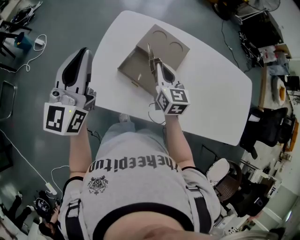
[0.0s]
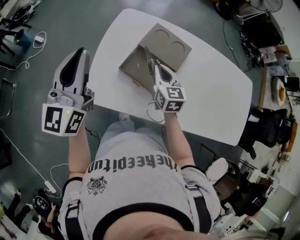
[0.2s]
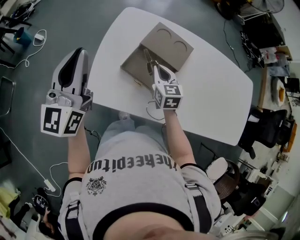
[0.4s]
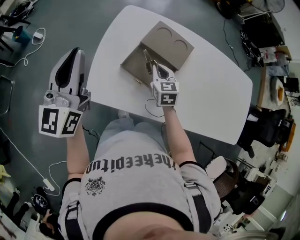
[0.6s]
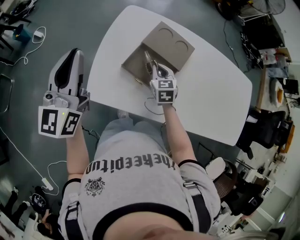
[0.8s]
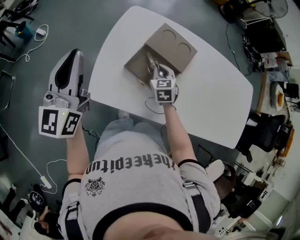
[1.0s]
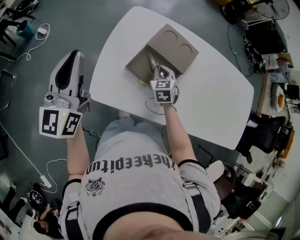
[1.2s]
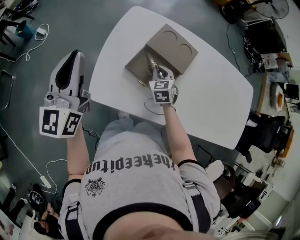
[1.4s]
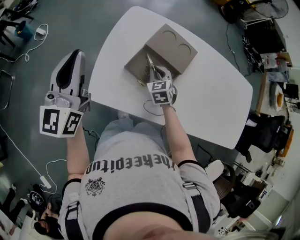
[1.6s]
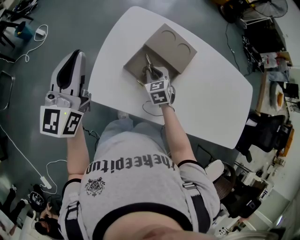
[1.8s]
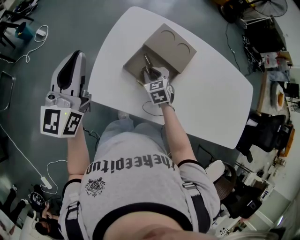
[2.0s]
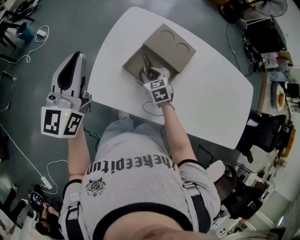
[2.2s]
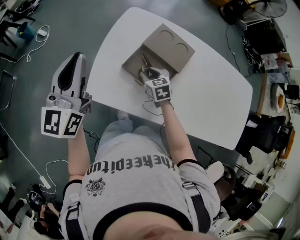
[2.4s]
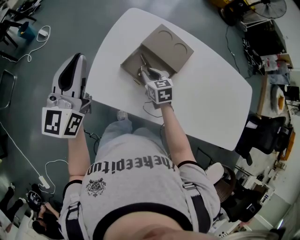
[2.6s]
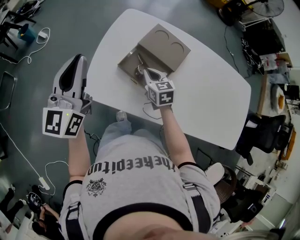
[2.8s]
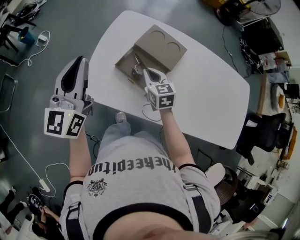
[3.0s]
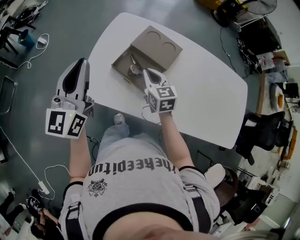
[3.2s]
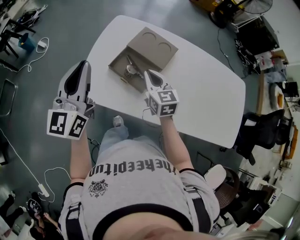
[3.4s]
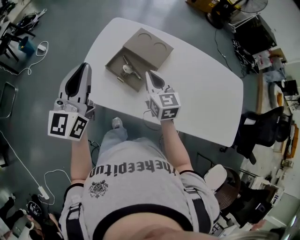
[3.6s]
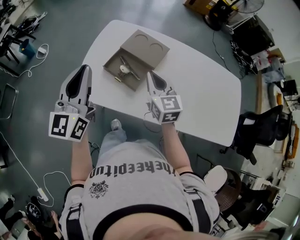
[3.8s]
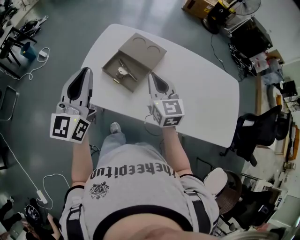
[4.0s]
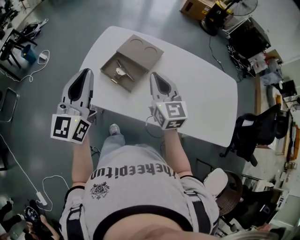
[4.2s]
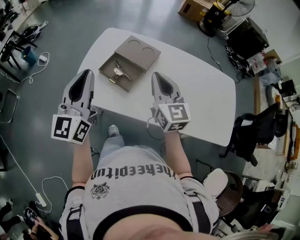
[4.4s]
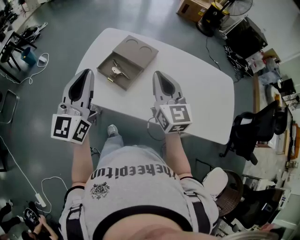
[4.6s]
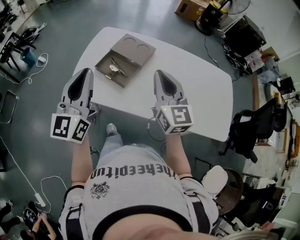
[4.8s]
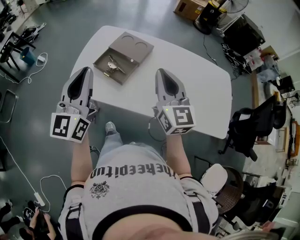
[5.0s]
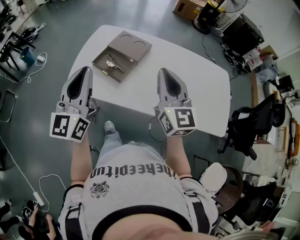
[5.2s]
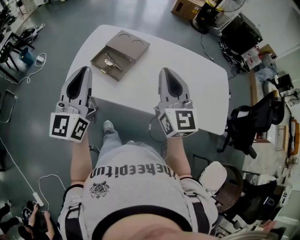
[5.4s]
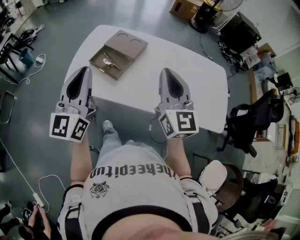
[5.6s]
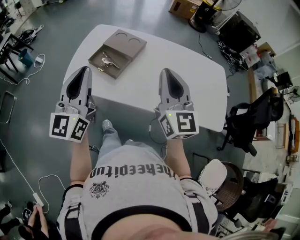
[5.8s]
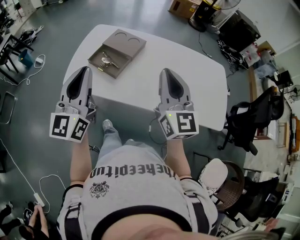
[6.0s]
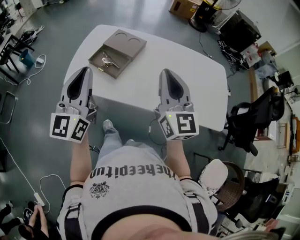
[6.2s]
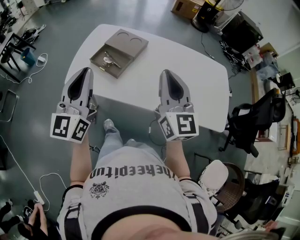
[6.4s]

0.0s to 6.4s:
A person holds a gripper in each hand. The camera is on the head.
0.0s to 1.6s: The right gripper goes some 15 cm downward, and turns by approximately 40 degrees. The left gripper shifts some 5 cm to the left.
1.6s to 3.2s: The left gripper is displaced to the right and backward by roughly 10 cm, while the right gripper shifts approximately 10 cm upward and backward, turns by roughly 30 degrees, and opens, then closes once more.
3.2s to 4.8s: The right gripper shifts approximately 30 cm upward, backward and to the right, and turns by about 30 degrees, while the left gripper goes about 20 cm backward and to the right.
4.8s to 6.4s: Both grippers travel together backward and to the right, approximately 10 cm.

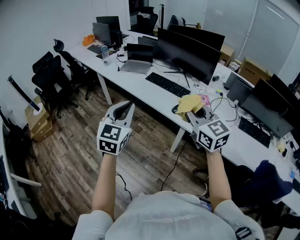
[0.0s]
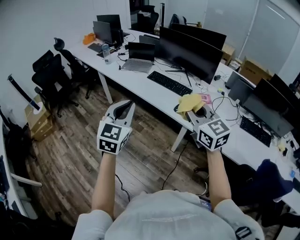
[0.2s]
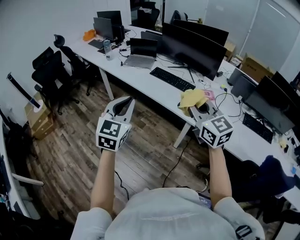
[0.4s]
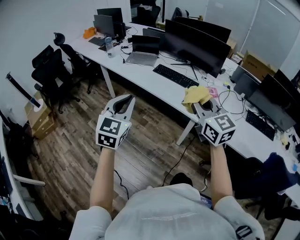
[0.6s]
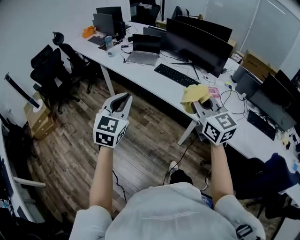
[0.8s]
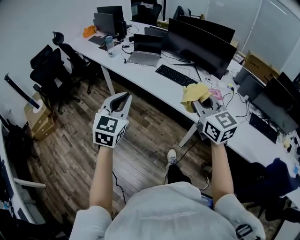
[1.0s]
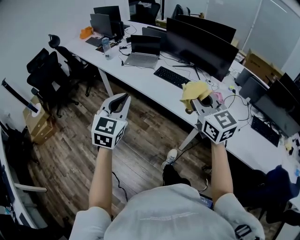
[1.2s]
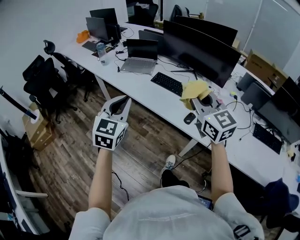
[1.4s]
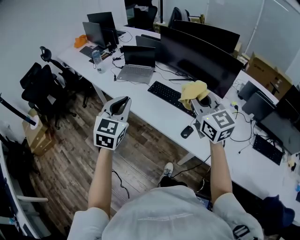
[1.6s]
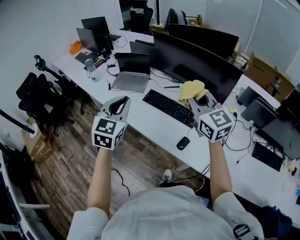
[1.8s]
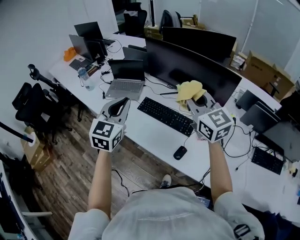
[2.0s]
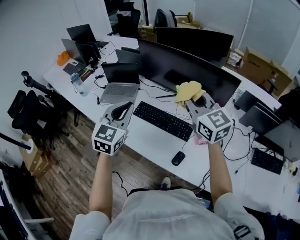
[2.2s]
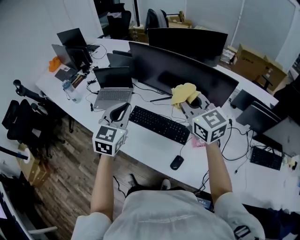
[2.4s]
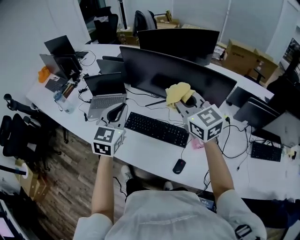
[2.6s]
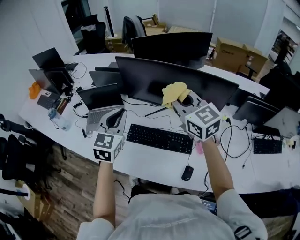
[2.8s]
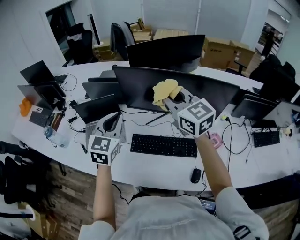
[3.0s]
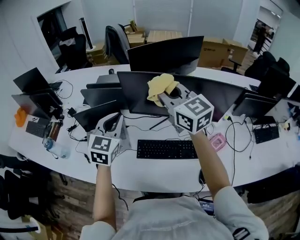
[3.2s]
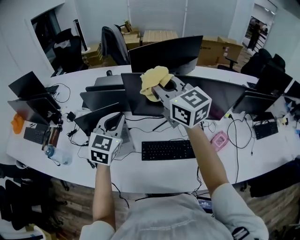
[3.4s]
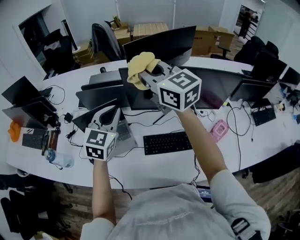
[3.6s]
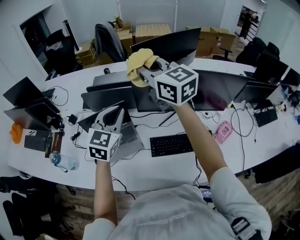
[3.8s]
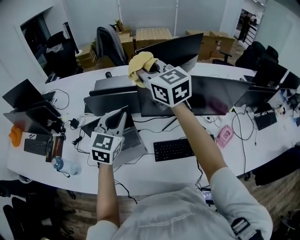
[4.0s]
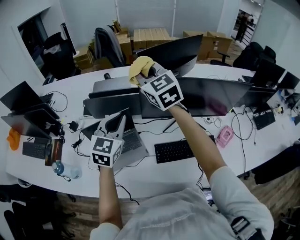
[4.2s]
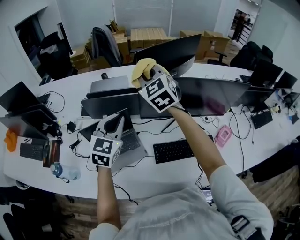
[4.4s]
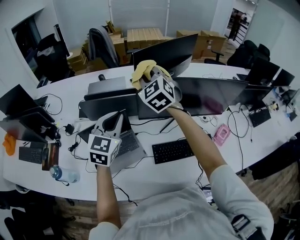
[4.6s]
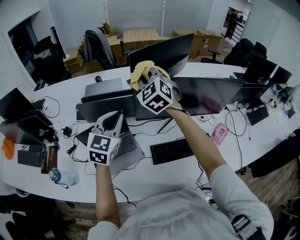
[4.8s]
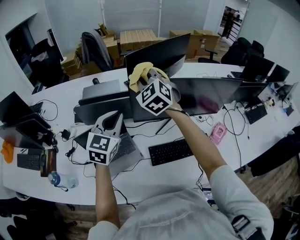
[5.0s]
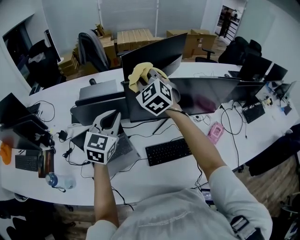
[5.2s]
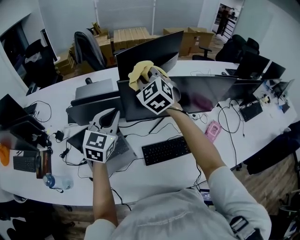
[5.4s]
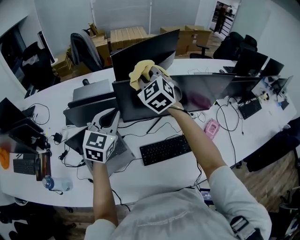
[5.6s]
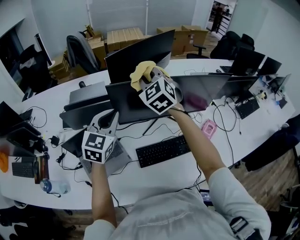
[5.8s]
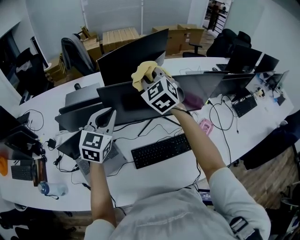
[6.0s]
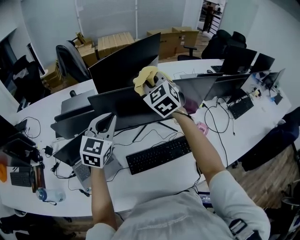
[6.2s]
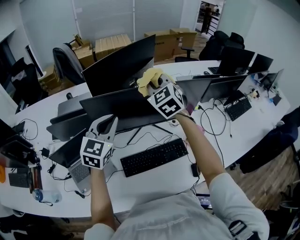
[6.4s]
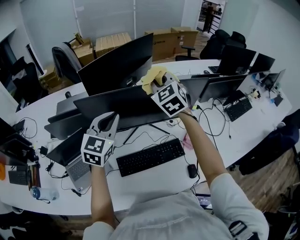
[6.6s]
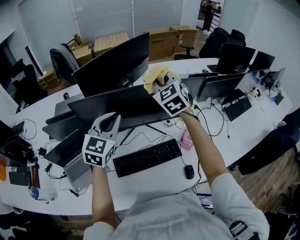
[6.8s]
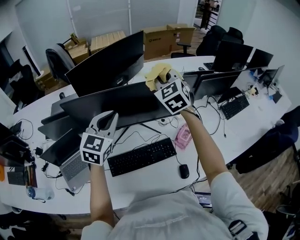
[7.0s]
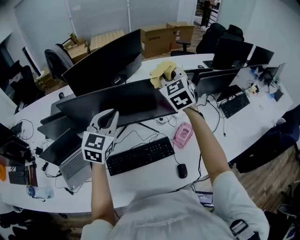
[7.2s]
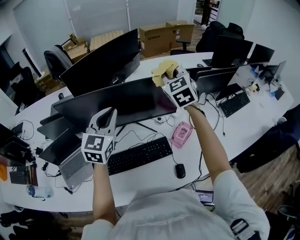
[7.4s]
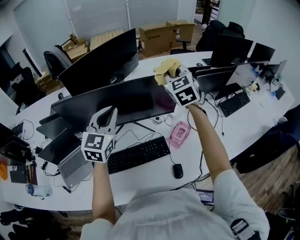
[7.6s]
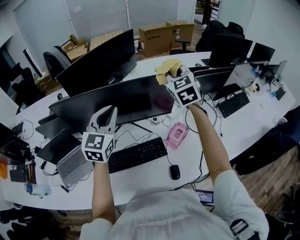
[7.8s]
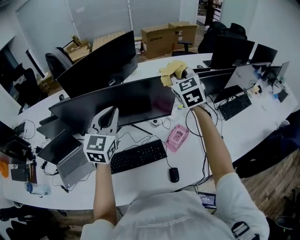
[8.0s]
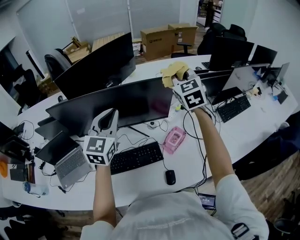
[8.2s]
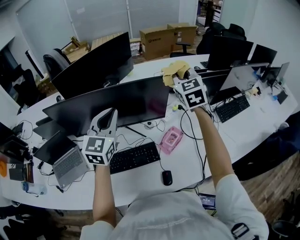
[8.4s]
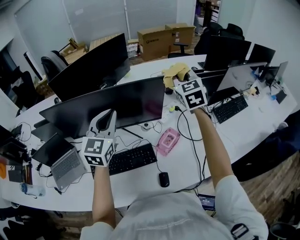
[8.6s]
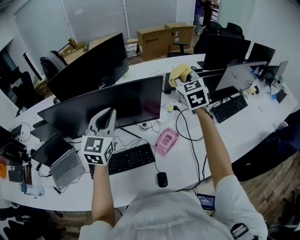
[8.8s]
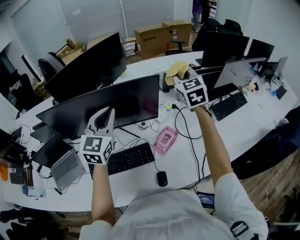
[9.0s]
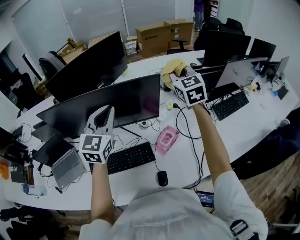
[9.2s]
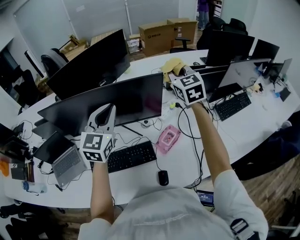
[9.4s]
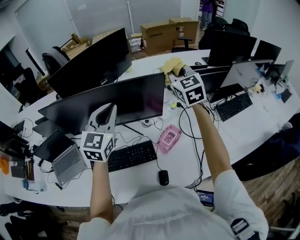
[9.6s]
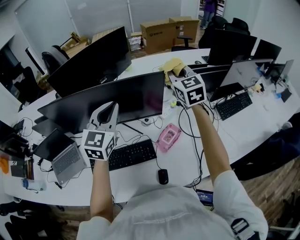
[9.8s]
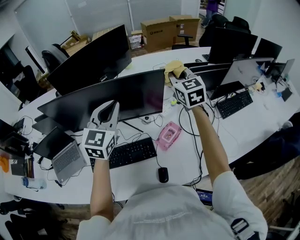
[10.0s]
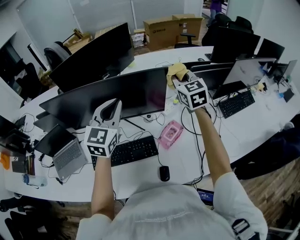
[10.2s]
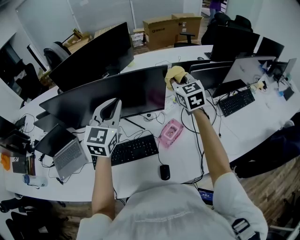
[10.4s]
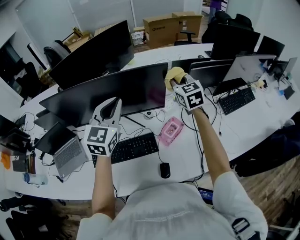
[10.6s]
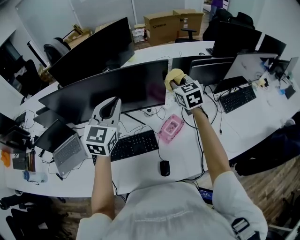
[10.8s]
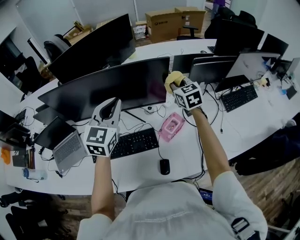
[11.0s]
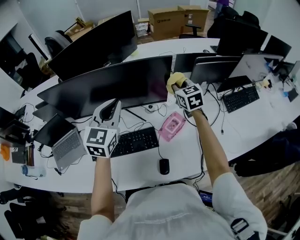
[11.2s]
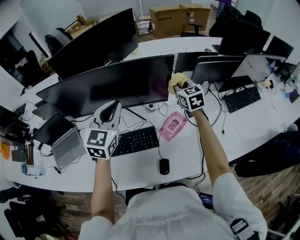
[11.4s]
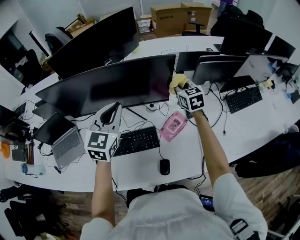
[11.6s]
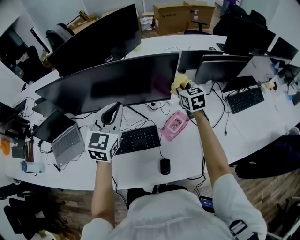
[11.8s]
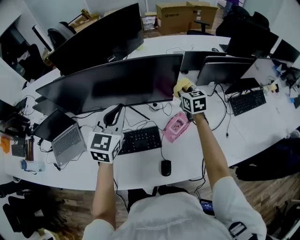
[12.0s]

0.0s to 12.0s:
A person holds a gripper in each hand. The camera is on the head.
0.0s to 1.6s: Both grippers move forward, about 30 cm.
1.6s to 3.0s: Both grippers move forward, approximately 40 cm. The left gripper turns by about 20 degrees.
3.0s to 4.4s: The right gripper moves forward and to the left, some 30 cm, and turns by roughly 40 degrees. Meanwhile the left gripper heads to the left and forward, covering approximately 20 cm.
4.4s to 6.0s: The right gripper travels to the right by approximately 20 cm, while the left gripper heads to the right and forward, covering approximately 15 cm.
6.0s to 7.6s: Both grippers move to the right, about 30 cm.
7.6s to 9.0s: The two grippers go about 15 cm to the right.
9.0s to 10.4s: The right gripper is displaced downward by roughly 5 cm.
10.4s to 12.0s: The right gripper shifts roughly 15 cm downward, while the left gripper is displaced downward by some 10 cm.

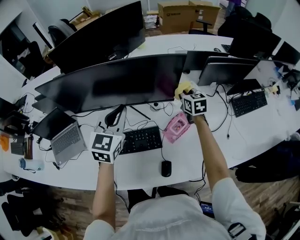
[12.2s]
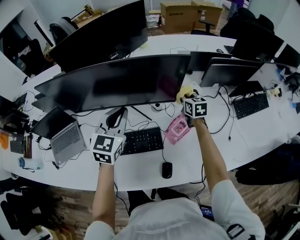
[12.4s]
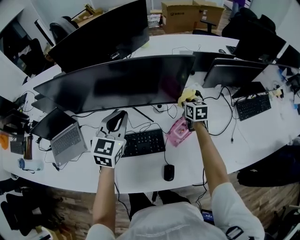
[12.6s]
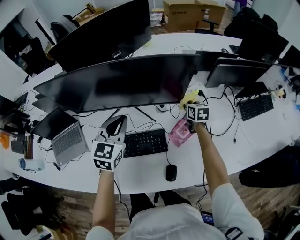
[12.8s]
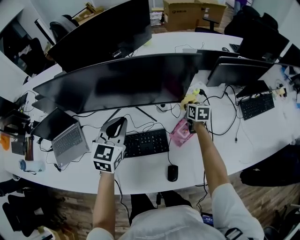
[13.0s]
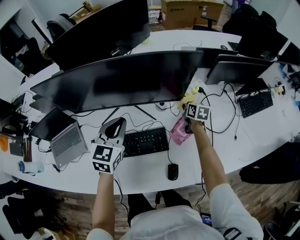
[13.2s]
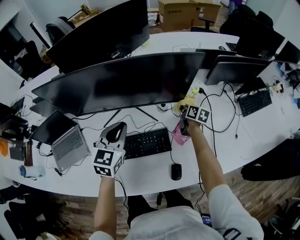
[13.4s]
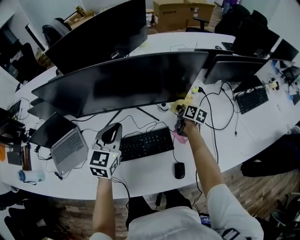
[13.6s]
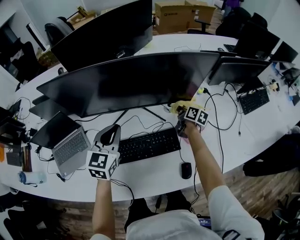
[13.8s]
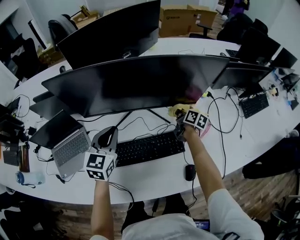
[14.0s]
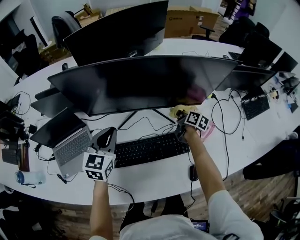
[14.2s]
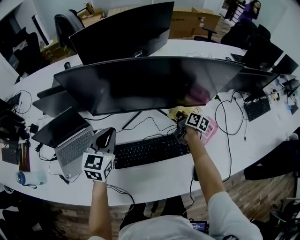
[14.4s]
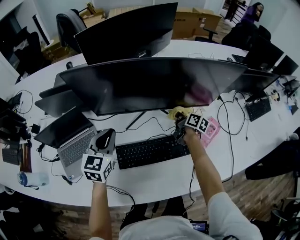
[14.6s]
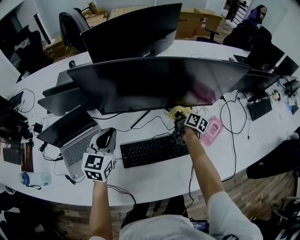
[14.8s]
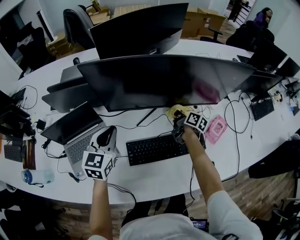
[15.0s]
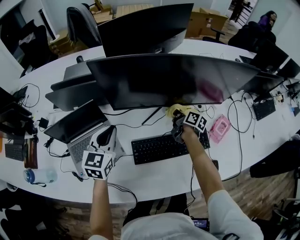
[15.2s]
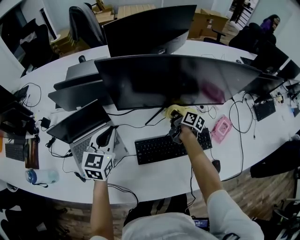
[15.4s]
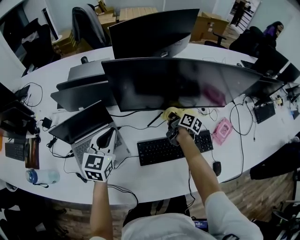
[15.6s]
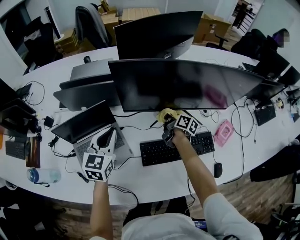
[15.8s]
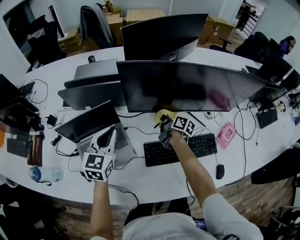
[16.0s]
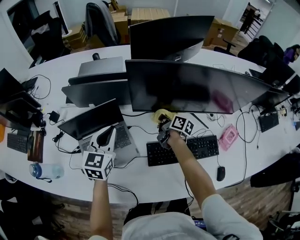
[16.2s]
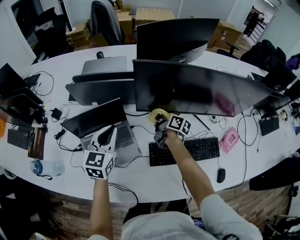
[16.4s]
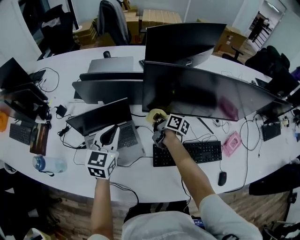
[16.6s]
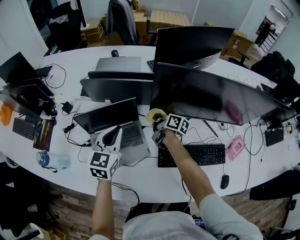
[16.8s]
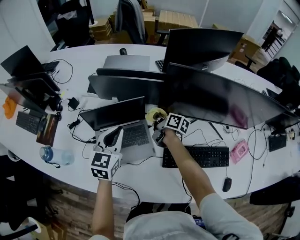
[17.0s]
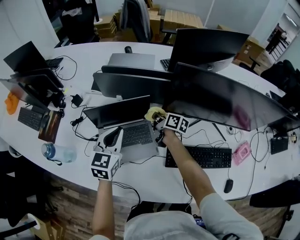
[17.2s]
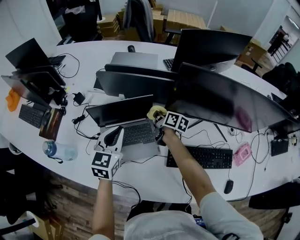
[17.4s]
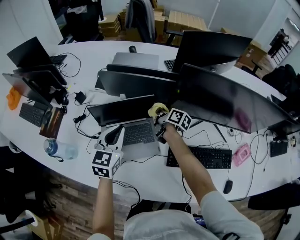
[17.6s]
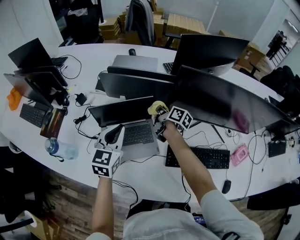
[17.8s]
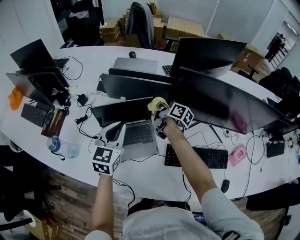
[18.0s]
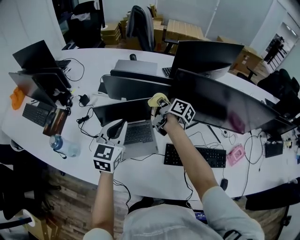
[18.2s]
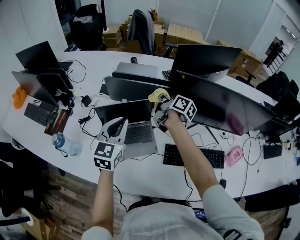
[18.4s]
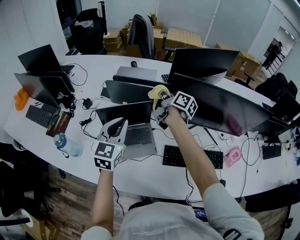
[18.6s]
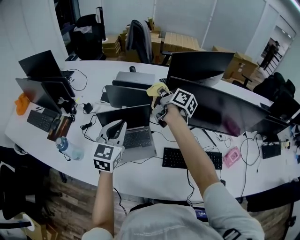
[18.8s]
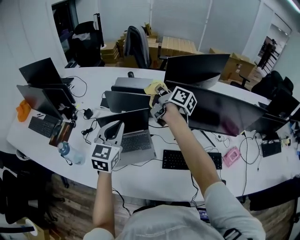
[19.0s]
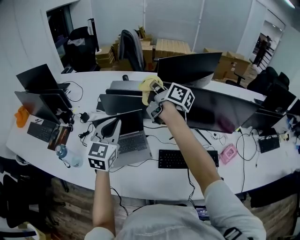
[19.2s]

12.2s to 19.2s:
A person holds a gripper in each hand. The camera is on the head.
12.2s to 13.6s: The left gripper is displaced to the left and downward by some 10 cm, while the right gripper travels downward by about 15 cm, and rolls clockwise, seen from behind, by about 40 degrees.
13.6s to 15.0s: Both grippers move to the left, approximately 25 cm.
15.0s to 16.4s: The left gripper moves to the left, roughly 15 cm; the right gripper heads to the left, covering approximately 25 cm.
16.4s to 17.8s: Both grippers travel together to the left, some 10 cm.
17.8s to 19.2s: The right gripper is displaced upward by roughly 35 cm, and swivels some 30 degrees. Meanwhile the left gripper heads upward, covering approximately 15 cm.
